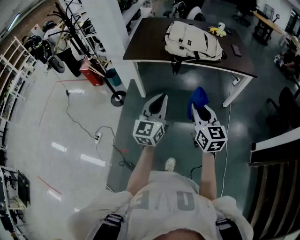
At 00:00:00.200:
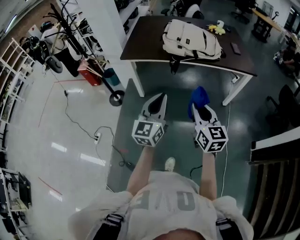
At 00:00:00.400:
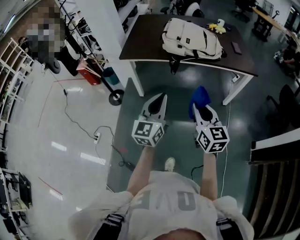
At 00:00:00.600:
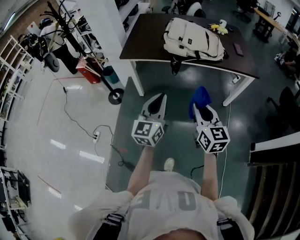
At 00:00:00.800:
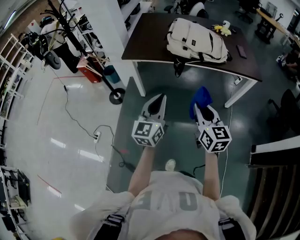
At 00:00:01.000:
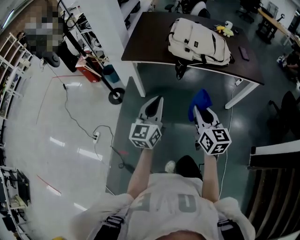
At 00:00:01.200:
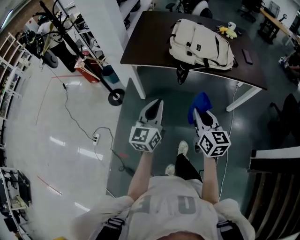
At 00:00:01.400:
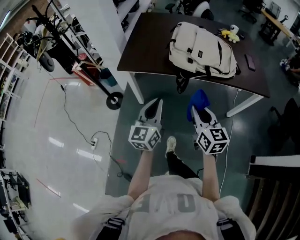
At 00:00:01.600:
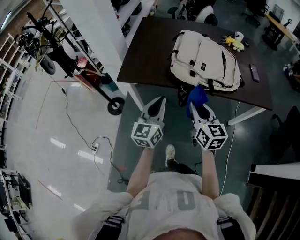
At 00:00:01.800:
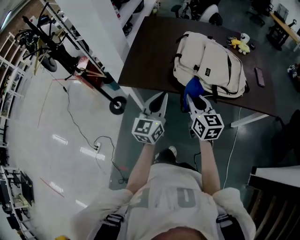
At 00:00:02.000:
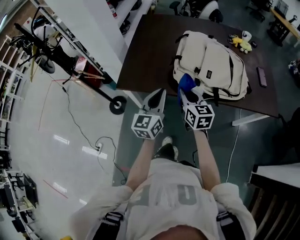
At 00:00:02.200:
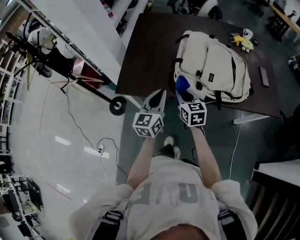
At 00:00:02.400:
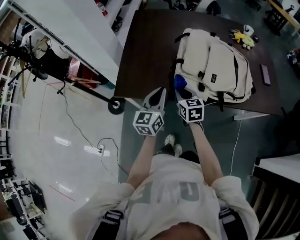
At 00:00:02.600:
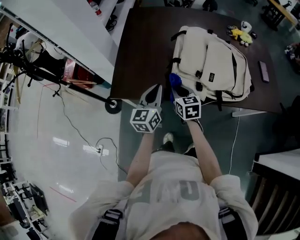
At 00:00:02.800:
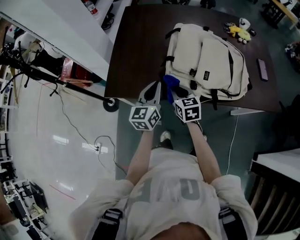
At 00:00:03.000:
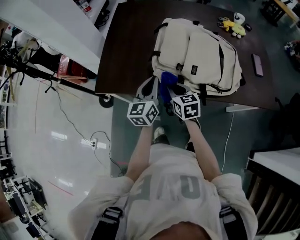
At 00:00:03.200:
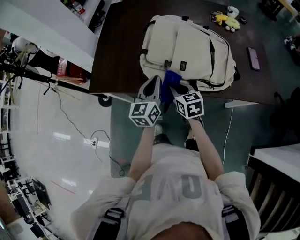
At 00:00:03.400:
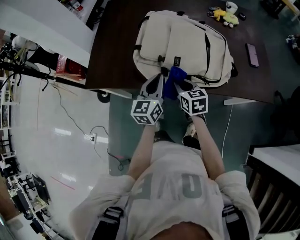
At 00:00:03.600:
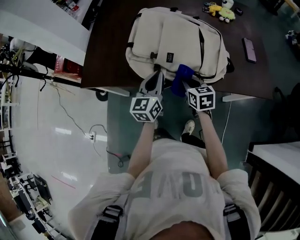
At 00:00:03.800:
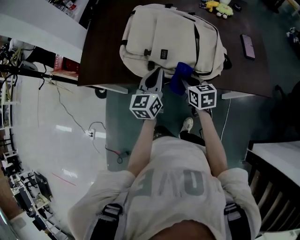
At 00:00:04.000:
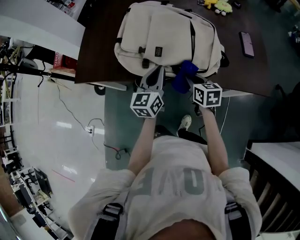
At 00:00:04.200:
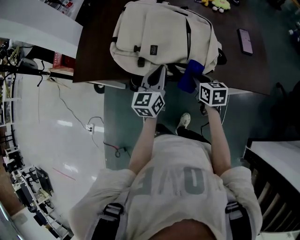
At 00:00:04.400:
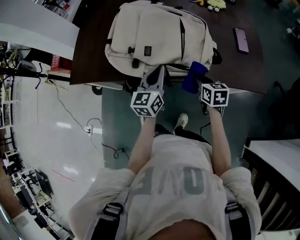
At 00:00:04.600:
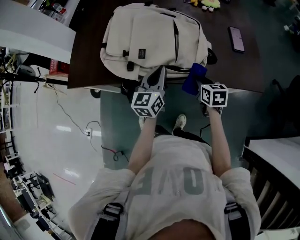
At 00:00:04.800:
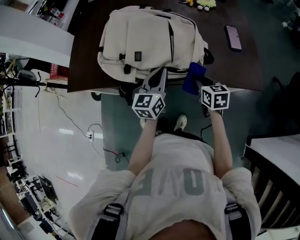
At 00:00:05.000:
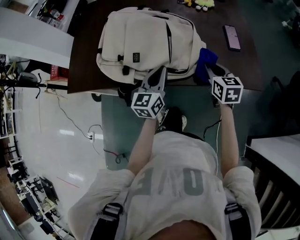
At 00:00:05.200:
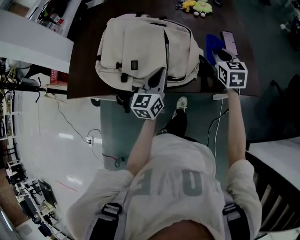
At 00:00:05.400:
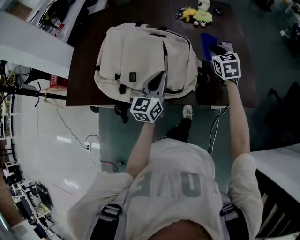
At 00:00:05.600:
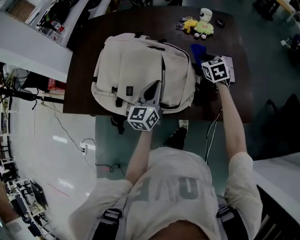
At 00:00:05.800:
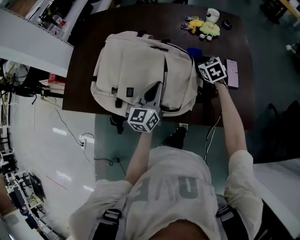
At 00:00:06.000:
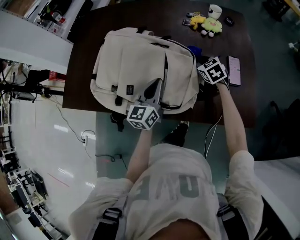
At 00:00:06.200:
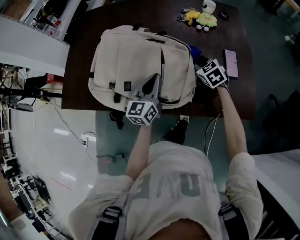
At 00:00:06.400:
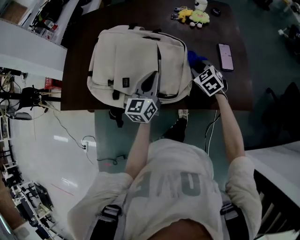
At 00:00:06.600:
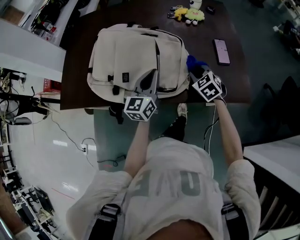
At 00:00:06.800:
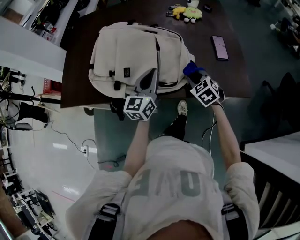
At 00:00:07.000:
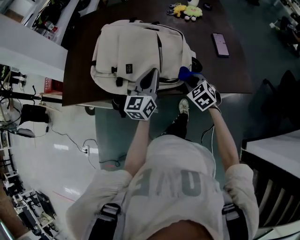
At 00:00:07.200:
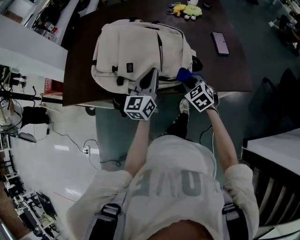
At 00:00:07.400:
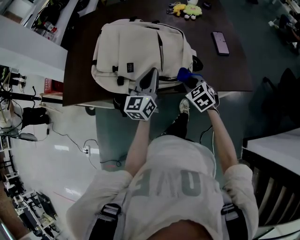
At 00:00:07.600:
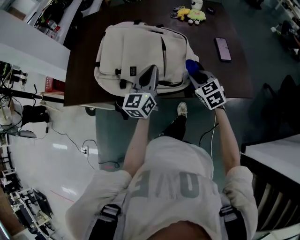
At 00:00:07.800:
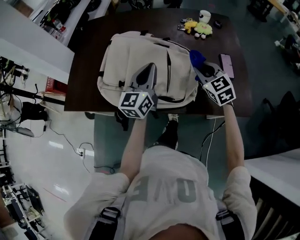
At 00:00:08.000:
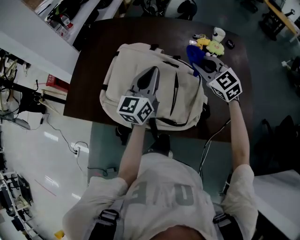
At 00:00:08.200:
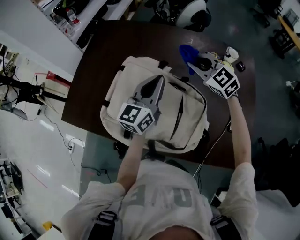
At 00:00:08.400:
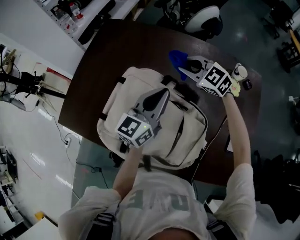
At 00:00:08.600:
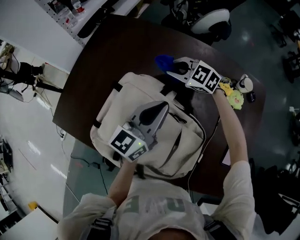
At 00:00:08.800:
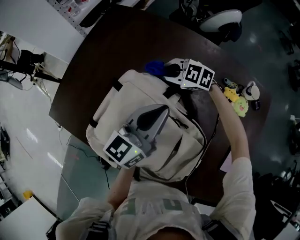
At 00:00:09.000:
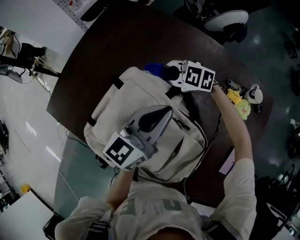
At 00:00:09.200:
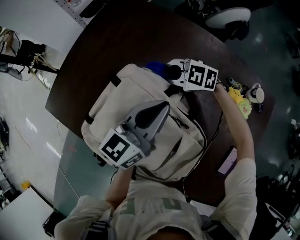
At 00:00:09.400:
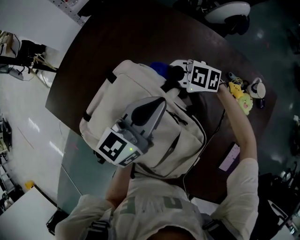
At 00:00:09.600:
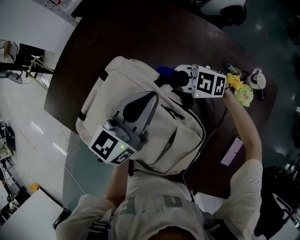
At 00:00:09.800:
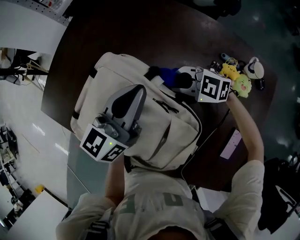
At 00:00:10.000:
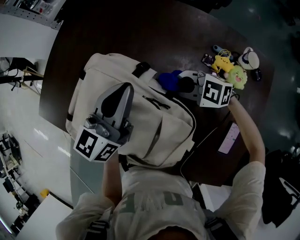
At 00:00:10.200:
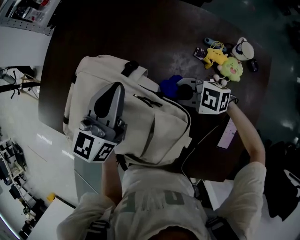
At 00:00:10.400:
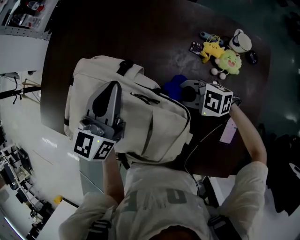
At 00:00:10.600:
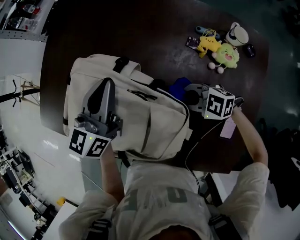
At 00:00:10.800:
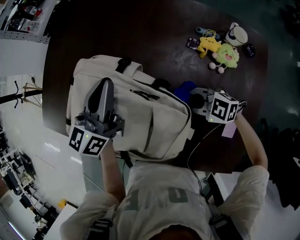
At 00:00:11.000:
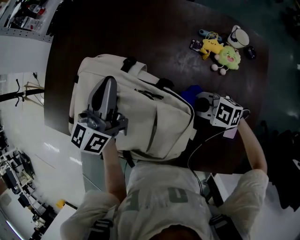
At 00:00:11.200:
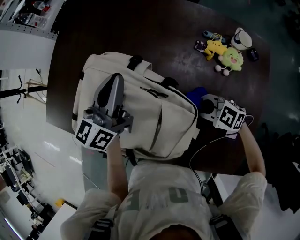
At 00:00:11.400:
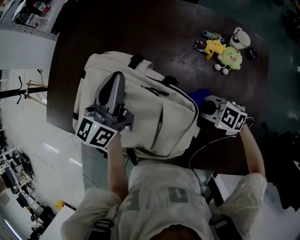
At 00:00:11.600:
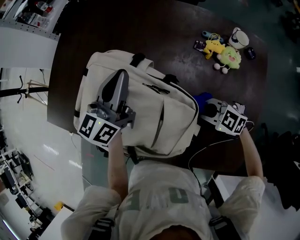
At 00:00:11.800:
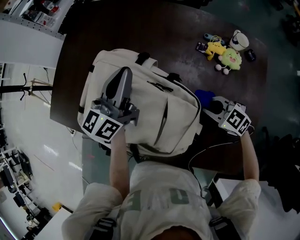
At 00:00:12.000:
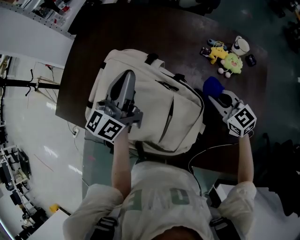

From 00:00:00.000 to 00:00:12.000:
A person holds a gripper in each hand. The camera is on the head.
From 00:00:00.000 to 00:00:01.600: The grippers both shift forward by roughly 30 cm.
From 00:00:01.600 to 00:00:03.000: The left gripper goes some 20 cm forward. The right gripper goes about 25 cm forward and downward, and swivels about 20 degrees.
From 00:00:03.000 to 00:00:04.400: Both grippers travel together to the right, approximately 25 cm.
From 00:00:04.400 to 00:00:06.000: The left gripper travels forward and to the right by roughly 15 cm, while the right gripper heads forward, covering roughly 25 cm, and rotates about 40 degrees.
From 00:00:06.000 to 00:00:07.600: The right gripper travels backward by approximately 20 cm. The left gripper heads backward and upward, covering roughly 10 cm.
From 00:00:07.600 to 00:00:09.000: The right gripper goes upward and returns, some 15 cm each way, and changes its angle by some 80 degrees; the left gripper changes place by about 25 cm.
From 00:00:09.000 to 00:00:10.400: The right gripper shifts by approximately 25 cm.
From 00:00:10.400 to 00:00:12.000: The left gripper travels to the left by about 5 cm, and swivels about 20 degrees, while the right gripper moves to the right and upward, some 10 cm, and turns by roughly 50 degrees.

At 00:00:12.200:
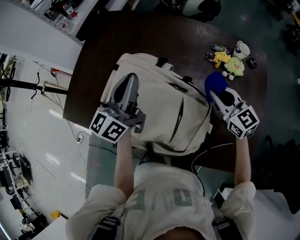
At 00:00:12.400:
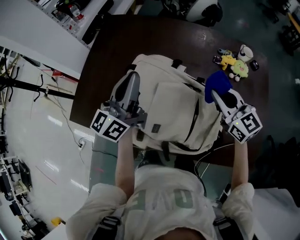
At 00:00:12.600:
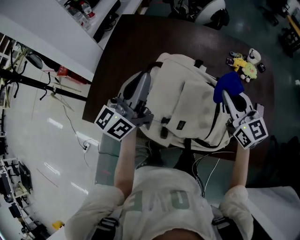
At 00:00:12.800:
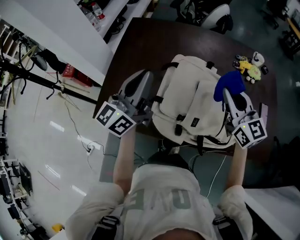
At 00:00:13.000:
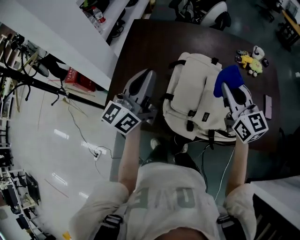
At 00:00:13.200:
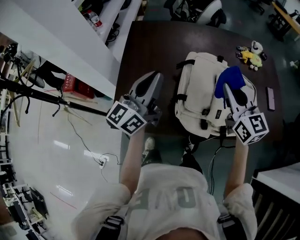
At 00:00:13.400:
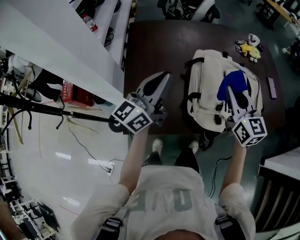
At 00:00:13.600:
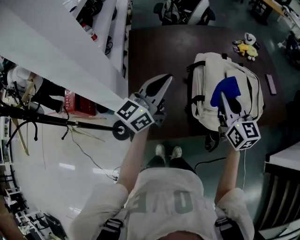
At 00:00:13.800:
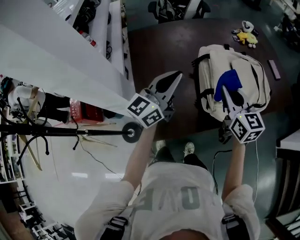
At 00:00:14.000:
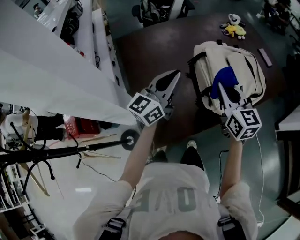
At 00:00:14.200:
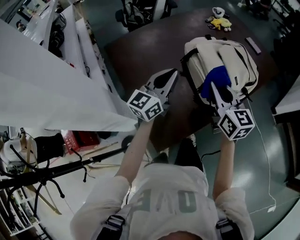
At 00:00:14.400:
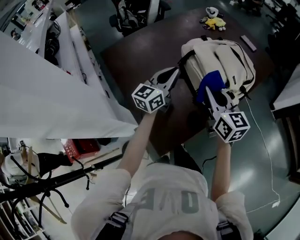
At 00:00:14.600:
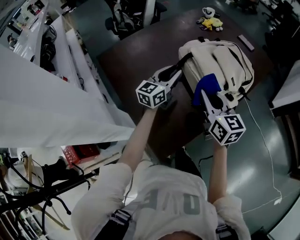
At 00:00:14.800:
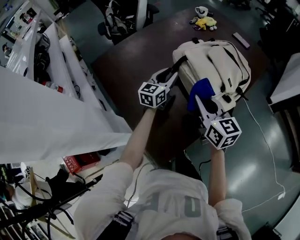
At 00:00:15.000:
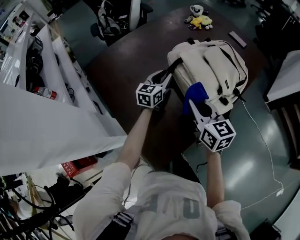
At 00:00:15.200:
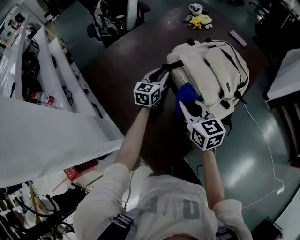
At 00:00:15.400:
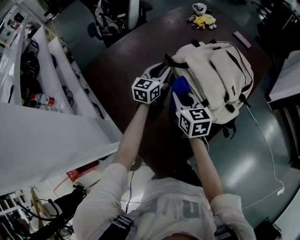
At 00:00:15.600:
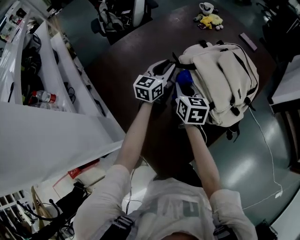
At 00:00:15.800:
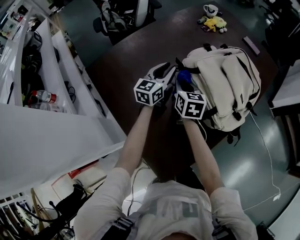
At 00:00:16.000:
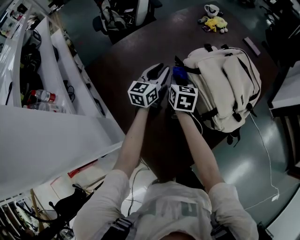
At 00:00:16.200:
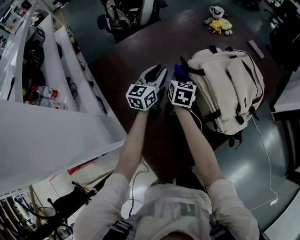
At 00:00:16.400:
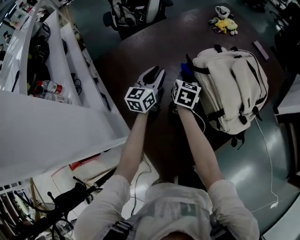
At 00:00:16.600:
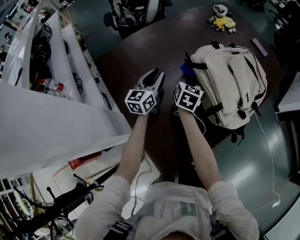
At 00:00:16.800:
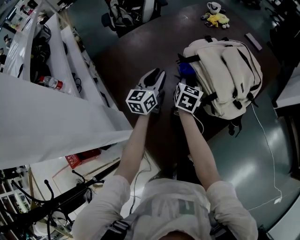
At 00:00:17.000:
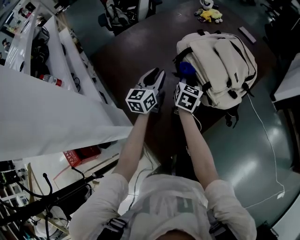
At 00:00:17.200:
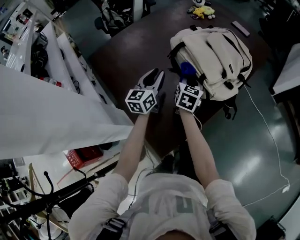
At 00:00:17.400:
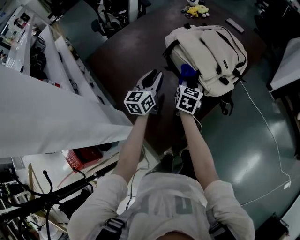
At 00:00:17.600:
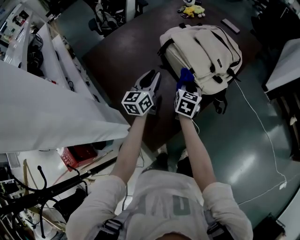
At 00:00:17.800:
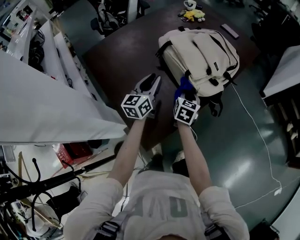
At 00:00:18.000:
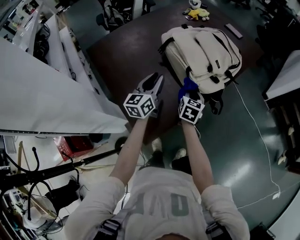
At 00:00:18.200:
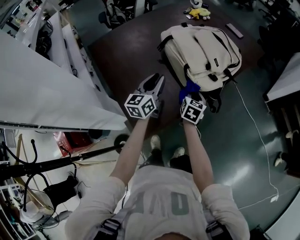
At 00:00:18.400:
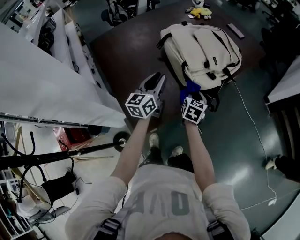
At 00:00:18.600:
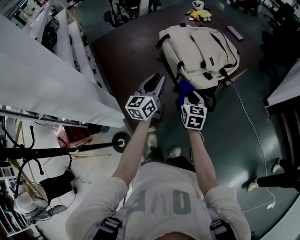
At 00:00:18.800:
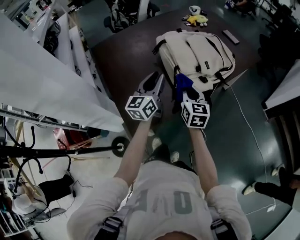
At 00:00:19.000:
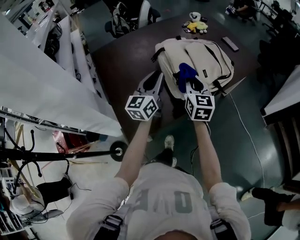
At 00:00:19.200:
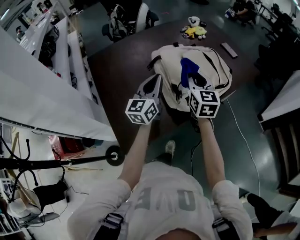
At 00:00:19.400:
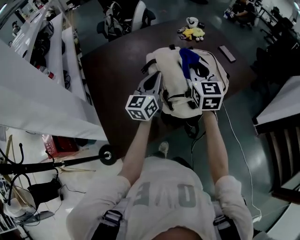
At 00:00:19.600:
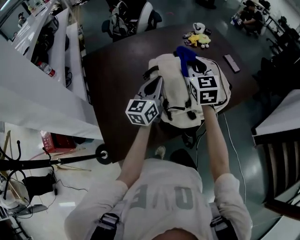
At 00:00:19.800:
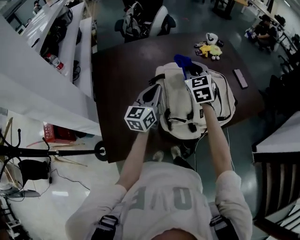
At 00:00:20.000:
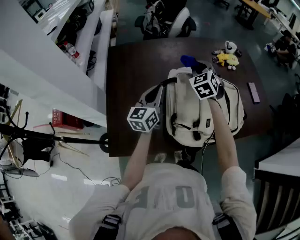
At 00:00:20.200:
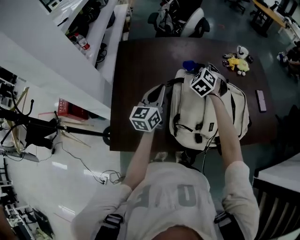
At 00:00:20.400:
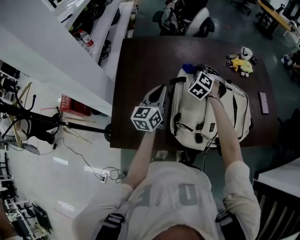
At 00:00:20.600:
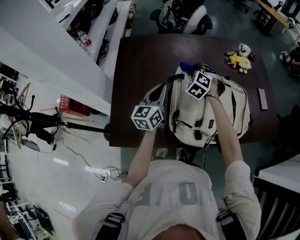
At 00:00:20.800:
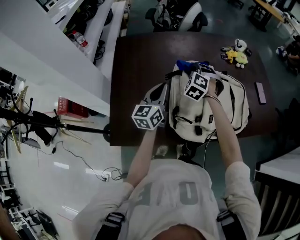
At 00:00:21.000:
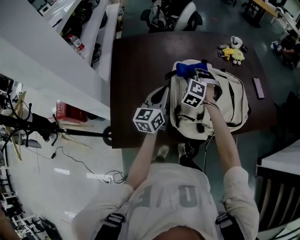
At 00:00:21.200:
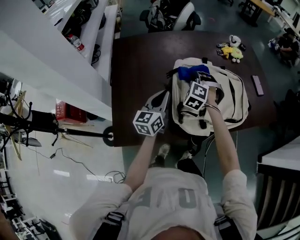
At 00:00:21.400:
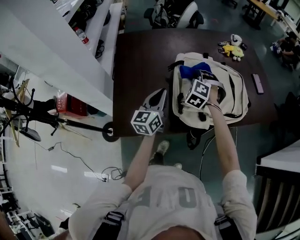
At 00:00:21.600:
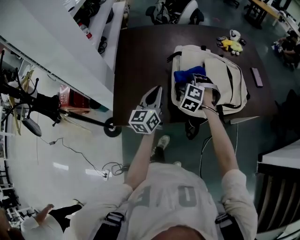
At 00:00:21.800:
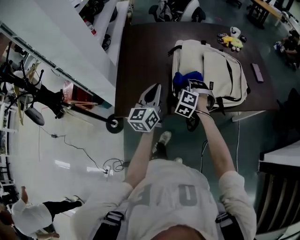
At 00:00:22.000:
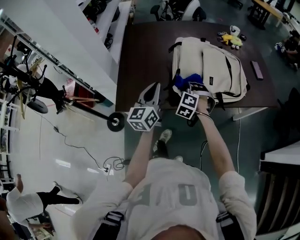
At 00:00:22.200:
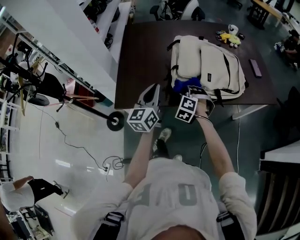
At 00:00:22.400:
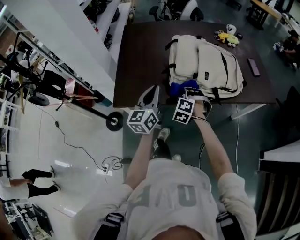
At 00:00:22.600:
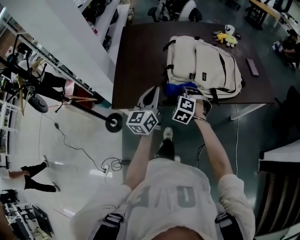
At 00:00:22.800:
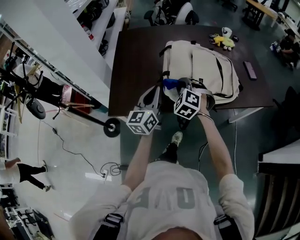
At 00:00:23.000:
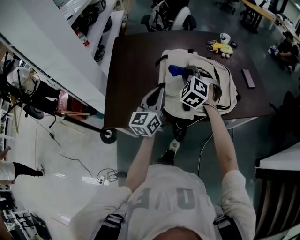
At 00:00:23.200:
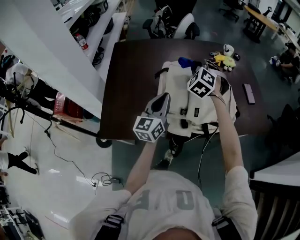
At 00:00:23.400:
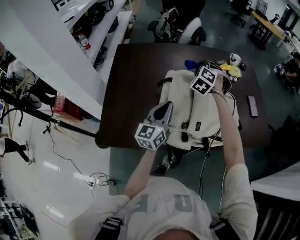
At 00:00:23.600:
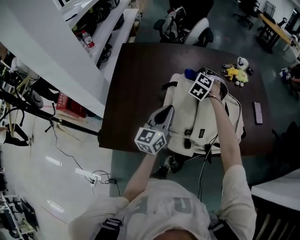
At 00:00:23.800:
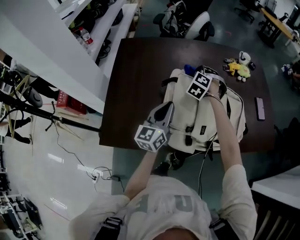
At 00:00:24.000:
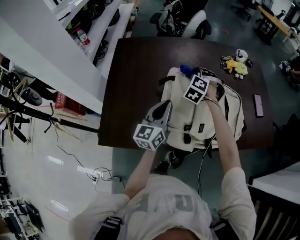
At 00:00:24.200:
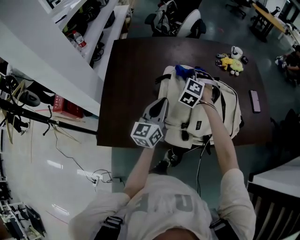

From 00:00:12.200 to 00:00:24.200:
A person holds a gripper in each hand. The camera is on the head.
From 00:00:12.200 to 00:00:13.800: The right gripper changes place by about 40 cm, and swivels roughly 50 degrees. Meanwhile the left gripper shifts by roughly 30 cm, and turns by roughly 50 degrees.
From 00:00:13.800 to 00:00:15.200: The right gripper shifts some 15 cm to the left and downward, and rotates some 20 degrees; the left gripper heads downward and forward, covering about 30 cm, turns by about 30 degrees, and opens up.
From 00:00:15.200 to 00:00:16.600: The right gripper goes some 20 cm forward, downward and to the left, and changes its angle by approximately 30 degrees. Meanwhile the left gripper is displaced to the left by some 10 cm.
From 00:00:16.600 to 00:00:18.200: The grippers both shift to the right and backward by about 25 cm.
From 00:00:18.200 to 00:00:19.800: The left gripper moves approximately 15 cm, rotates approximately 20 degrees, and closes its fingers. Meanwhile the right gripper moves roughly 35 cm, and swivels about 60 degrees.
From 00:00:19.800 to 00:00:21.200: The left gripper is displaced backward by about 5 cm, while the right gripper shifts some 15 cm downward and to the left, and twists approximately 50 degrees counterclockwise, seen from behind.
From 00:00:21.200 to 00:00:22.600: The two grippers go some 25 cm backward.
From 00:00:22.600 to 00:00:24.200: The left gripper shifts roughly 20 cm forward. Meanwhile the right gripper moves forward, some 30 cm.
